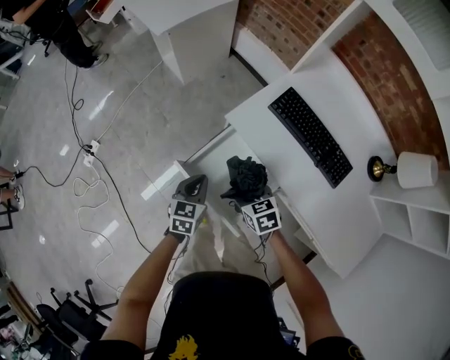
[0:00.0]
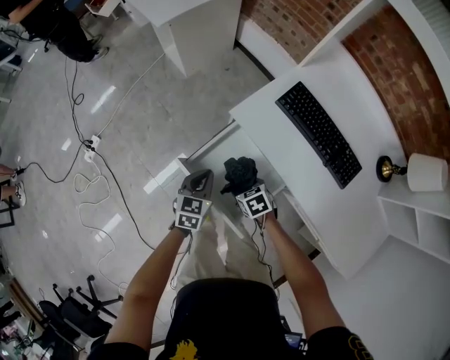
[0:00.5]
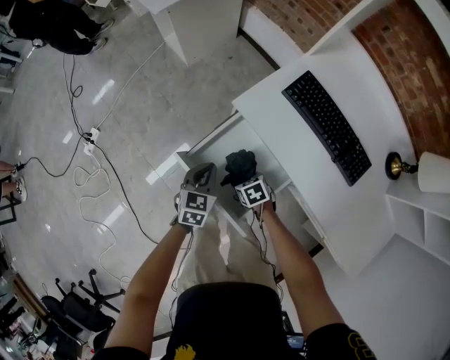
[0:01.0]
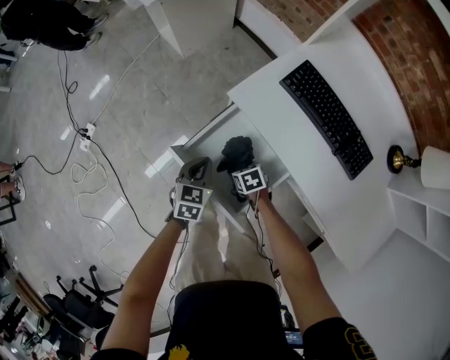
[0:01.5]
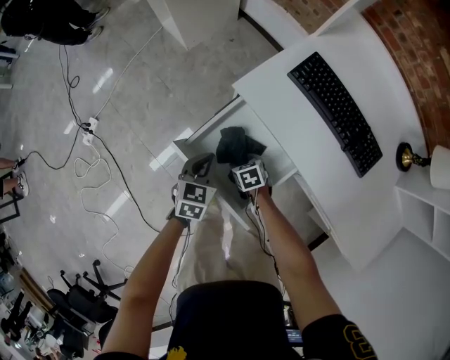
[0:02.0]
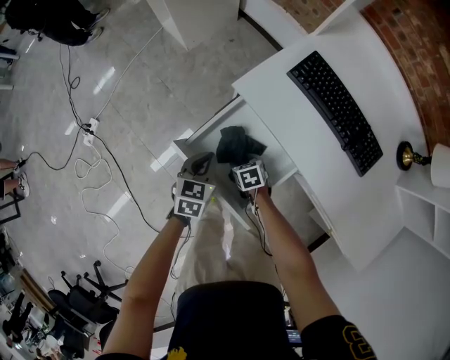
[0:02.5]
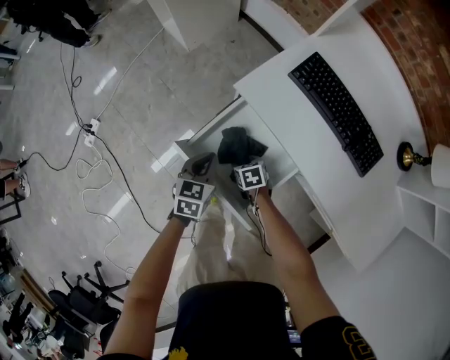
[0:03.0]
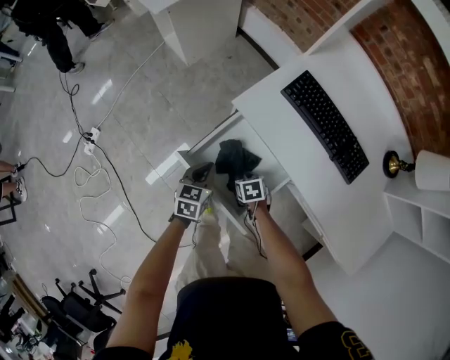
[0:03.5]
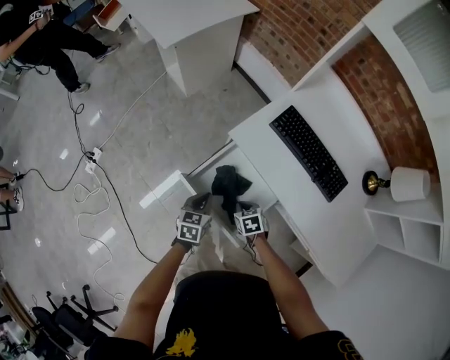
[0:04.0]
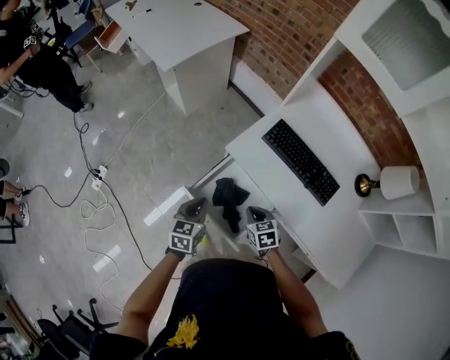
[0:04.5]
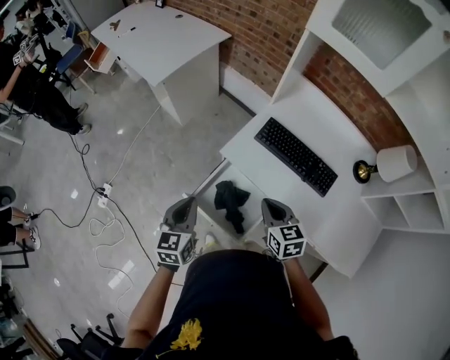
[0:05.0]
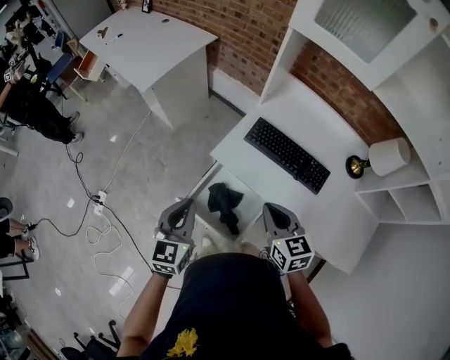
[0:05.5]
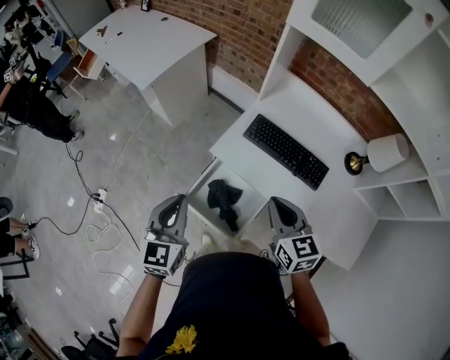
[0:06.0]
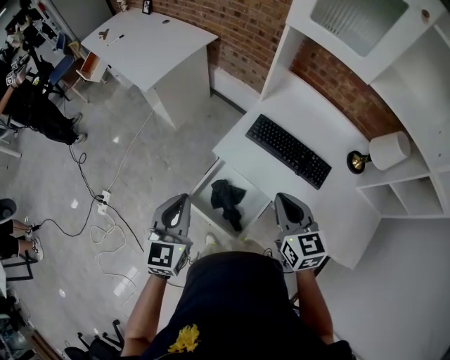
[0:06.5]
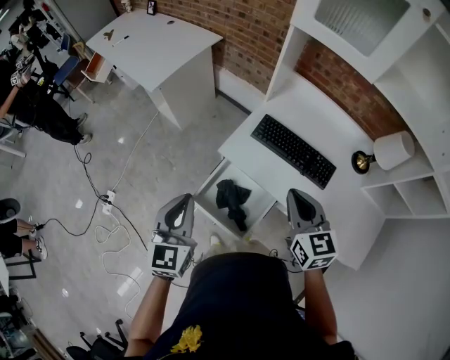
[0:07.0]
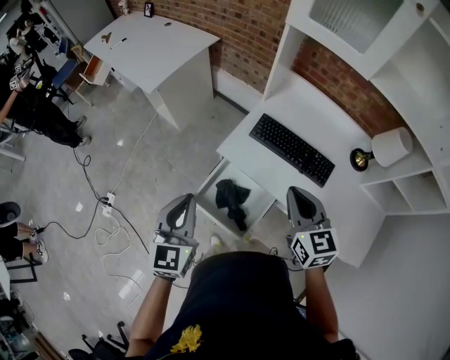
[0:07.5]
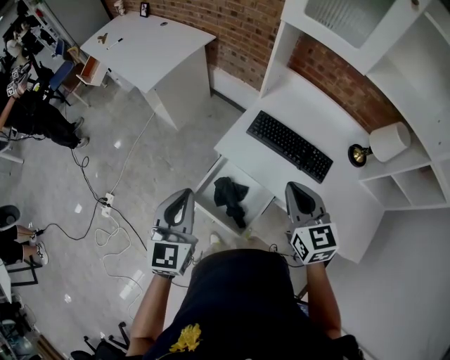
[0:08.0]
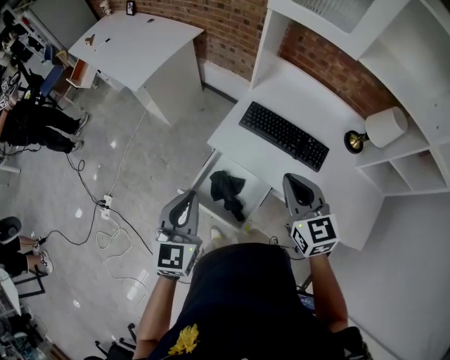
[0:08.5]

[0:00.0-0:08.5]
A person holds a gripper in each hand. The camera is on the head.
0:00.0 to 0:02.0: The left gripper travels downward by roughly 10 cm, while the right gripper is displaced downward by approximately 25 cm.
0:02.0 to 0:04.0: The left gripper moves about 5 cm; the right gripper shifts about 15 cm upward, and closes up.
0:04.0 to 0:06.5: Both grippers travel together upward, some 35 cm. The right gripper tips its fingers upward by some 40 degrees. Meanwhile the left gripper turns by roughly 30 degrees.
0:06.5 to 0:08.5: The grippers make only small movements.

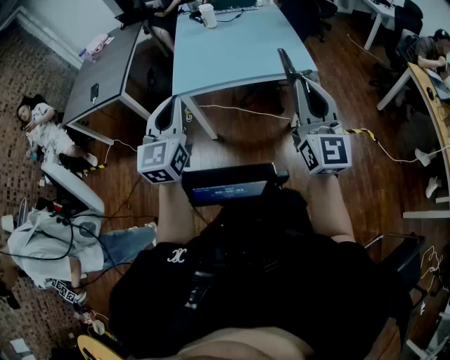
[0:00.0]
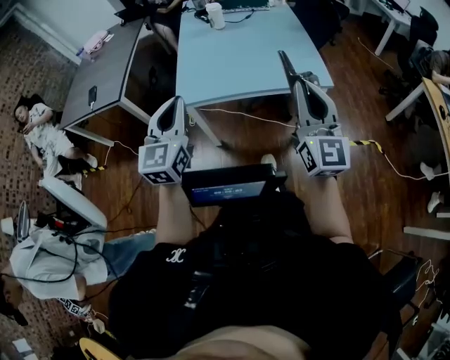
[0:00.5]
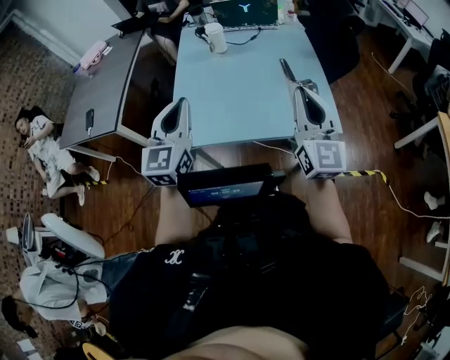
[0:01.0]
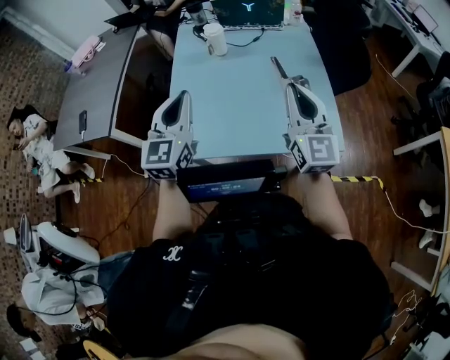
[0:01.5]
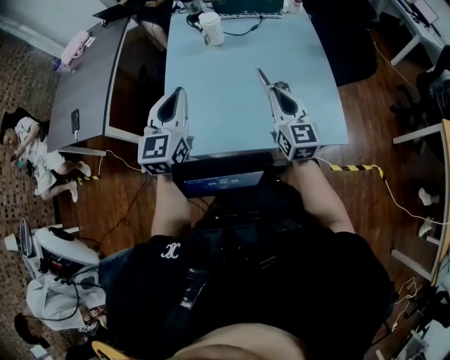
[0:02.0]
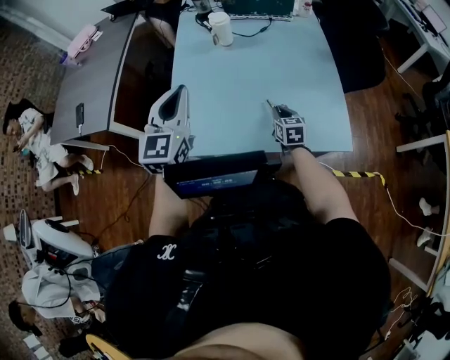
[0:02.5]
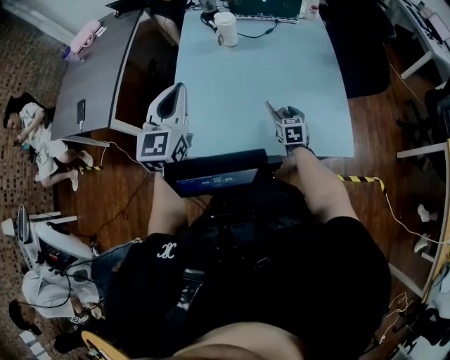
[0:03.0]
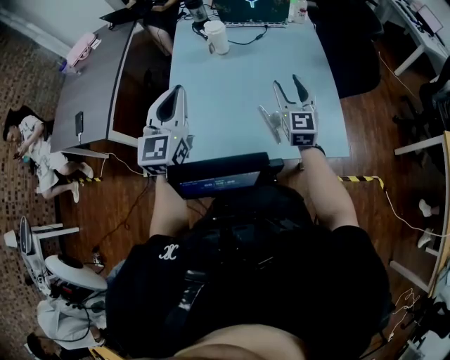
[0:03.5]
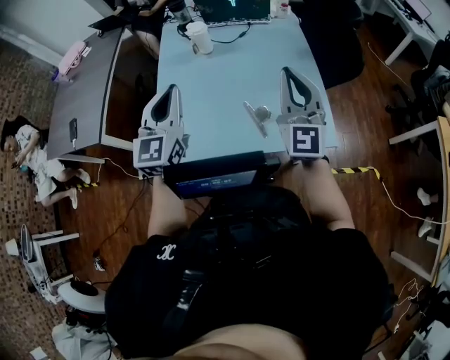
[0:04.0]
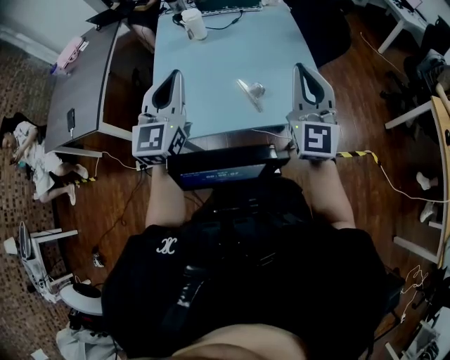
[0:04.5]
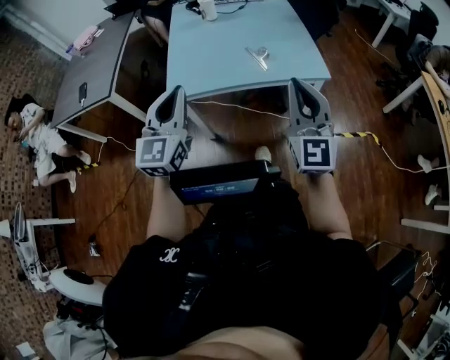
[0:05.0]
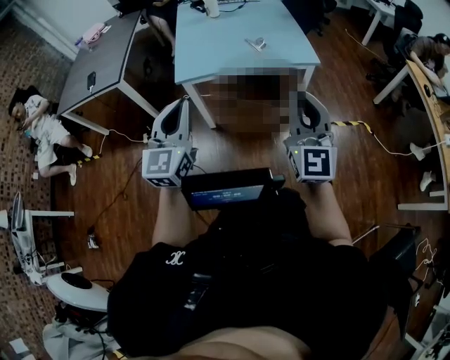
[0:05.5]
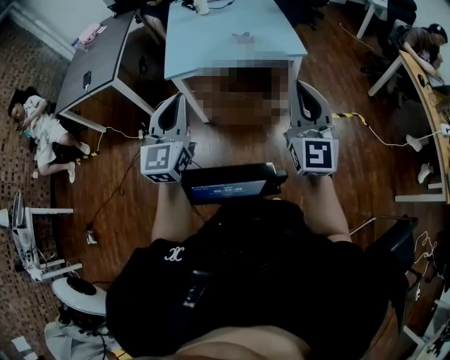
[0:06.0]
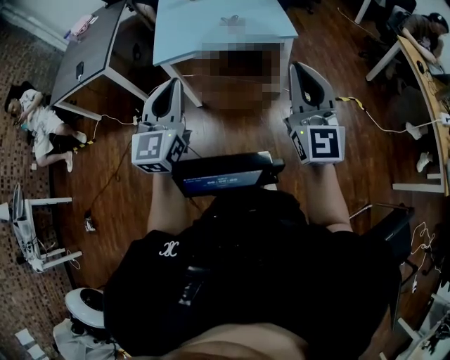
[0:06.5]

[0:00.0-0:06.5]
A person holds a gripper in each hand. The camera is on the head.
0:00.0 to 0:02.0: The two grippers travel together, forward, roughly 50 cm. The right gripper travels downward by about 20 cm, and turns by about 30 degrees.
0:02.0 to 0:04.5: The right gripper moves upward, backward and to the right, about 20 cm, changes its angle by about 30 degrees, and opens and closes again, while the left gripper goes about 15 cm to the right, upward and backward.
0:04.5 to 0:06.5: The right gripper goes forward and backward, about 25 cm each way, reversing 2 times. Meanwhile the left gripper moves forward and backward over approximately 25 cm, changing direction 2 times.

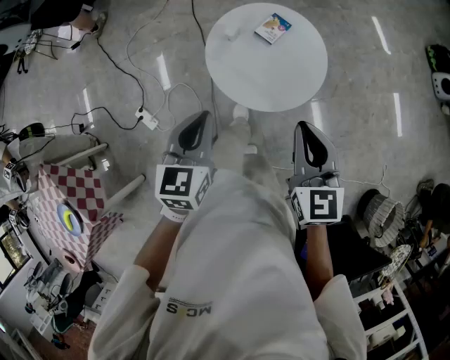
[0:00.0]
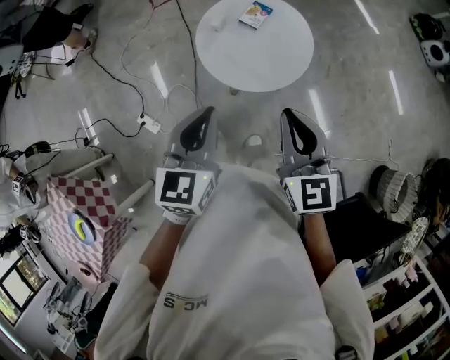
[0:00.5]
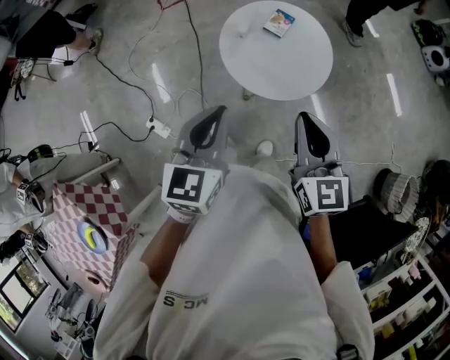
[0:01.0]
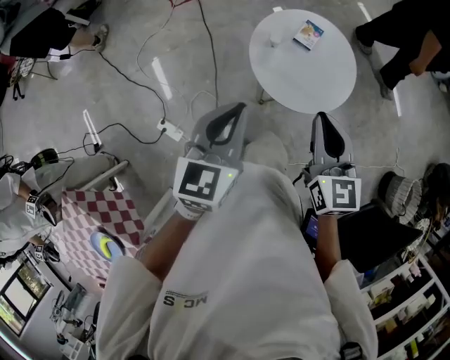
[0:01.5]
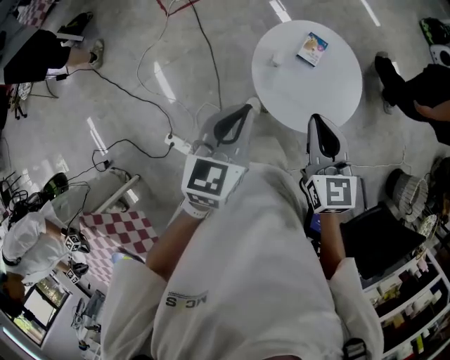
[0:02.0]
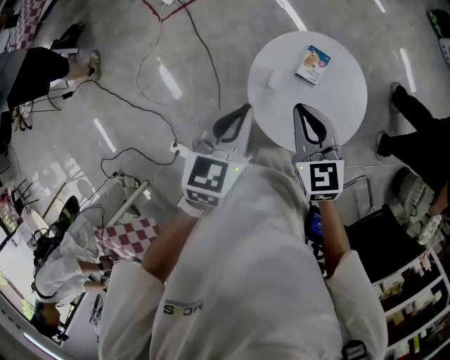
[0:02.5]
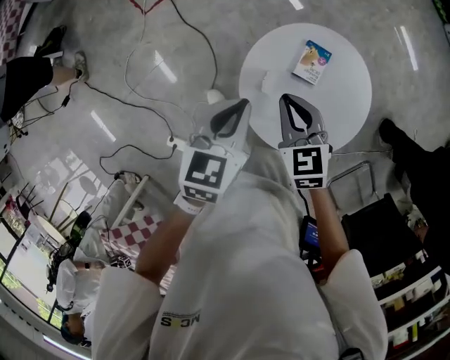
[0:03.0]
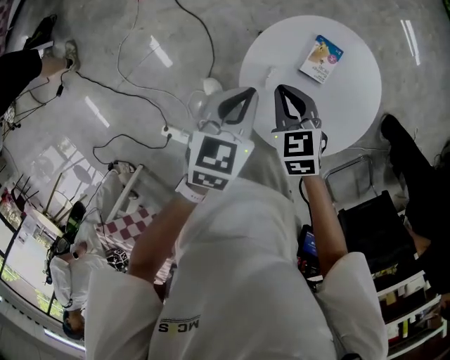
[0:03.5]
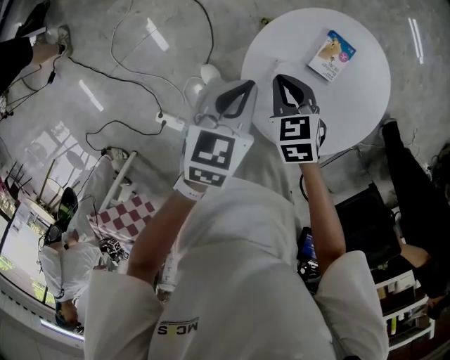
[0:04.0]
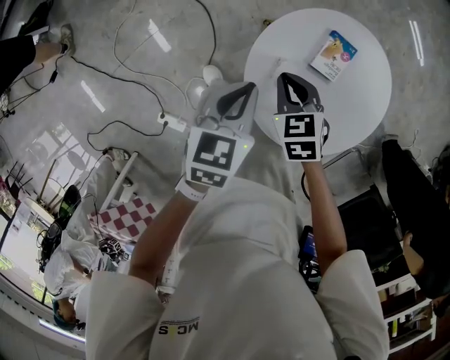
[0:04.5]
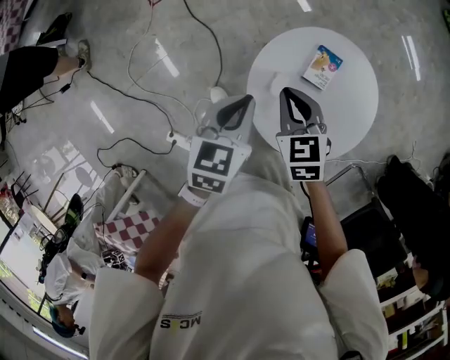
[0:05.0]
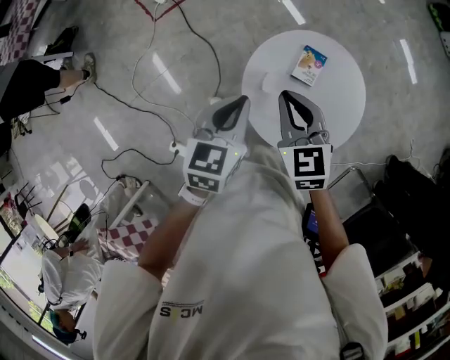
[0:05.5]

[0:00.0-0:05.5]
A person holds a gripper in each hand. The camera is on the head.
0:00.0 to 0:02.0: Both grippers move to the left and forward, approximately 25 cm. The left gripper swivels approximately 20 degrees.
0:02.0 to 0:03.5: The right gripper travels downward and forward by some 35 cm, and swivels roughly 30 degrees; the left gripper heads forward and downward, covering some 30 cm, and turns by some 20 degrees.
0:03.5 to 0:05.5: The left gripper shifts approximately 10 cm upward; the right gripper travels upward by roughly 15 cm.

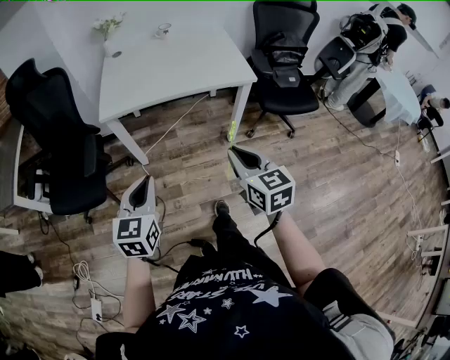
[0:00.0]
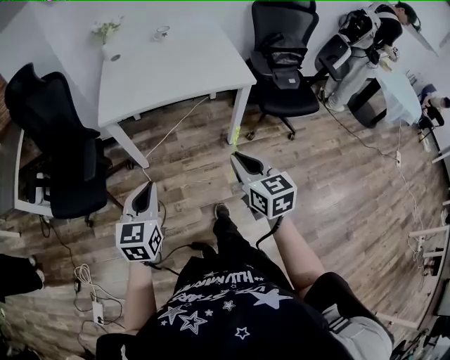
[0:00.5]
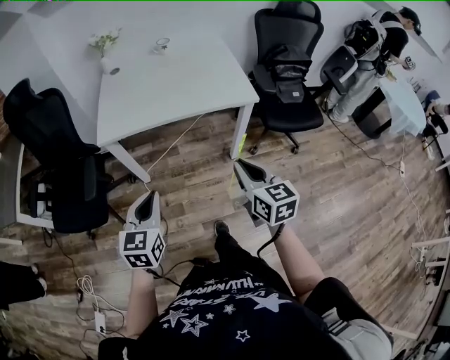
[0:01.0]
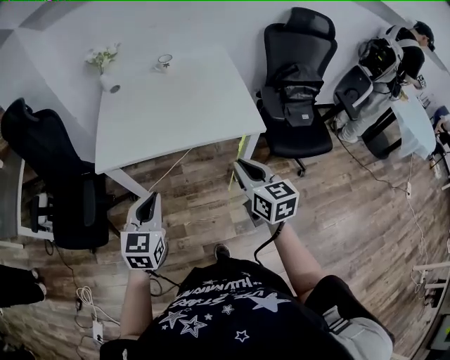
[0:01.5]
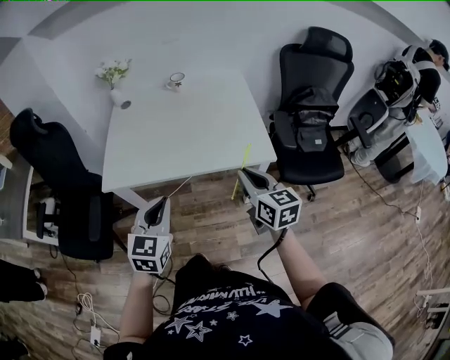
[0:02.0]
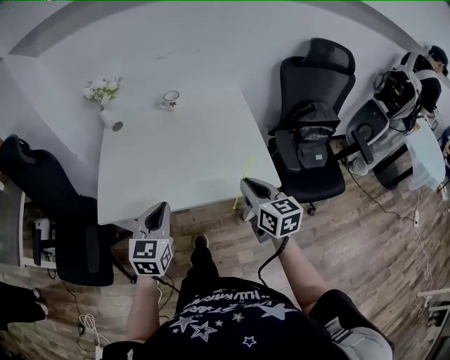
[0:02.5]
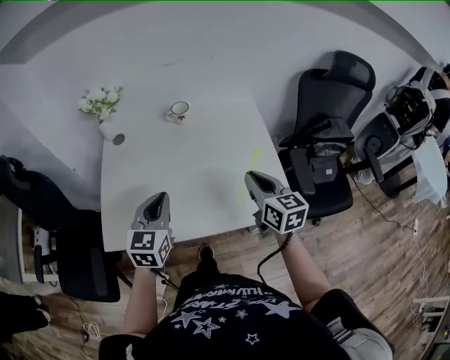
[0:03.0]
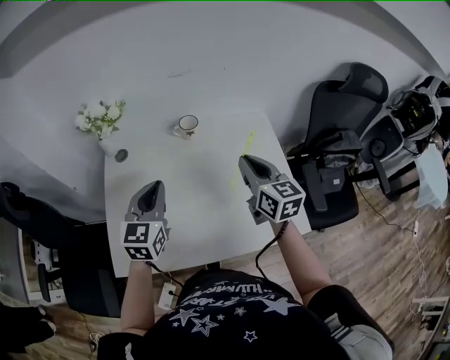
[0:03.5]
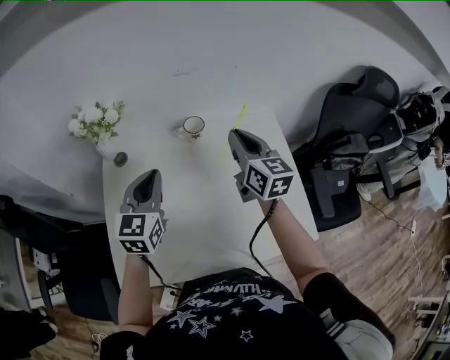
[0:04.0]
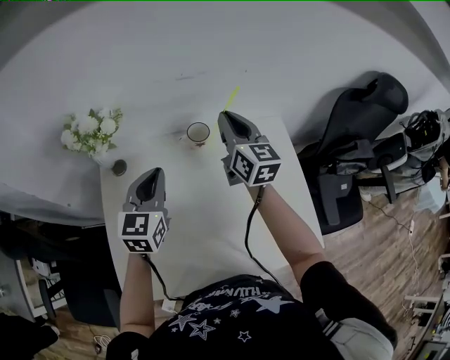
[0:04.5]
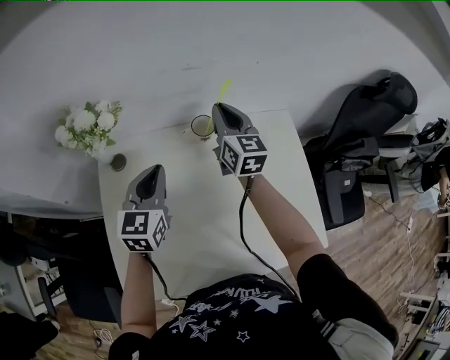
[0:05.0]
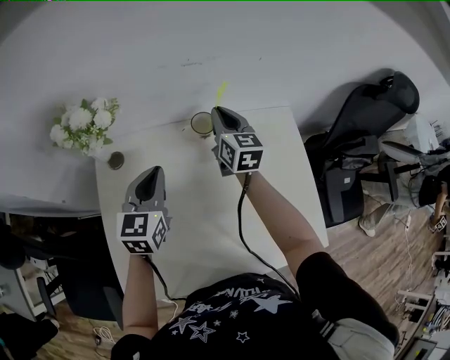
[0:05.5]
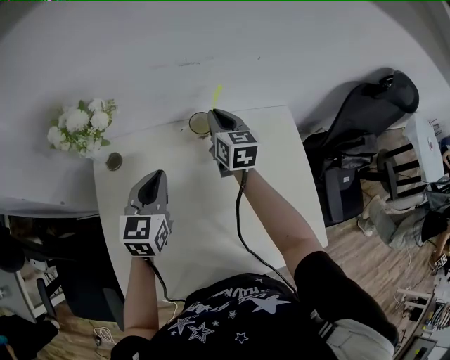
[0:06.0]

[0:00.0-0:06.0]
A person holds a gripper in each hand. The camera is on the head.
0:00.0 to 0:02.0: The right gripper travels forward by roughly 30 cm; the left gripper travels forward and to the right by some 30 cm.
0:02.0 to 0:04.0: Both grippers are carried forward, about 50 cm.
0:04.0 to 0:06.0: The right gripper shifts some 20 cm forward, downward and to the left. The left gripper heads downward and forward, covering some 10 cm.
